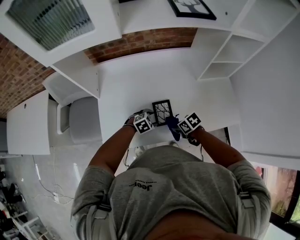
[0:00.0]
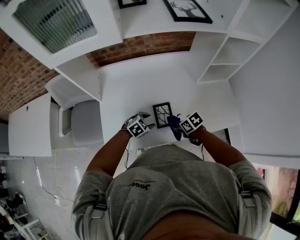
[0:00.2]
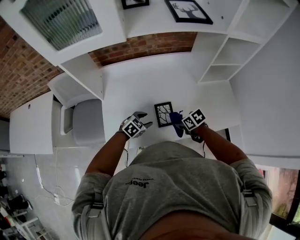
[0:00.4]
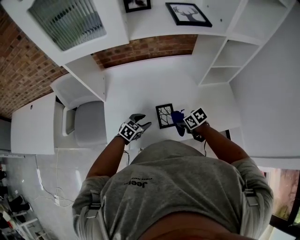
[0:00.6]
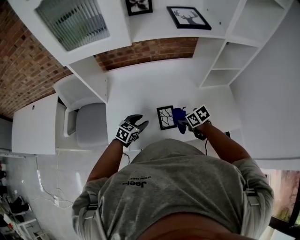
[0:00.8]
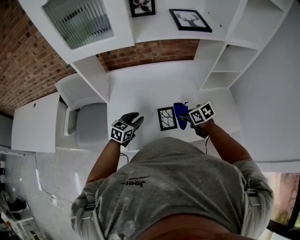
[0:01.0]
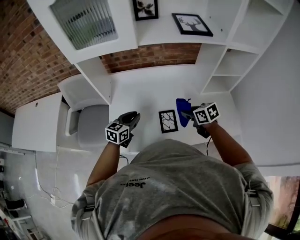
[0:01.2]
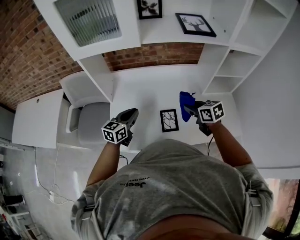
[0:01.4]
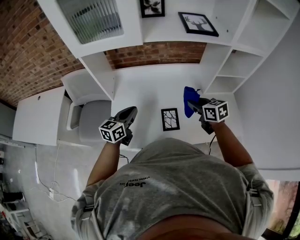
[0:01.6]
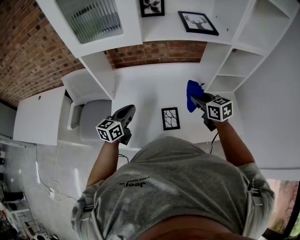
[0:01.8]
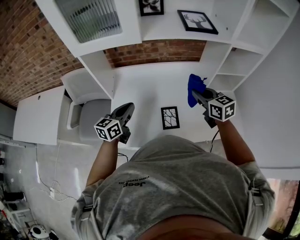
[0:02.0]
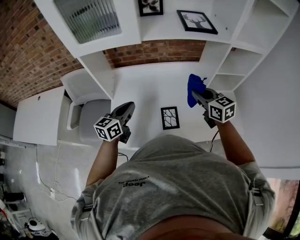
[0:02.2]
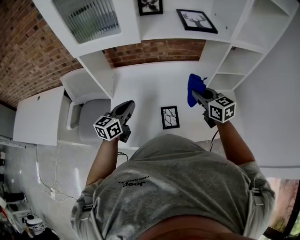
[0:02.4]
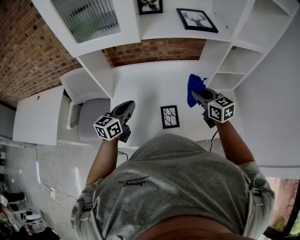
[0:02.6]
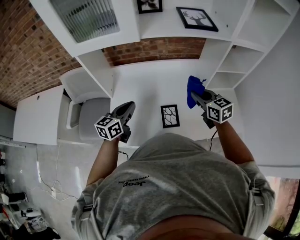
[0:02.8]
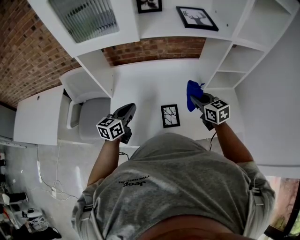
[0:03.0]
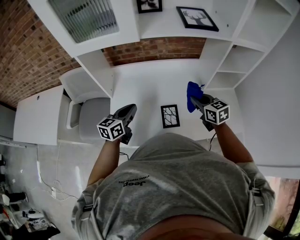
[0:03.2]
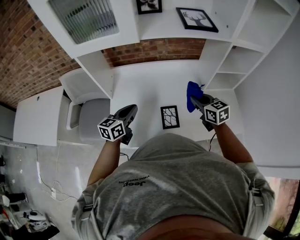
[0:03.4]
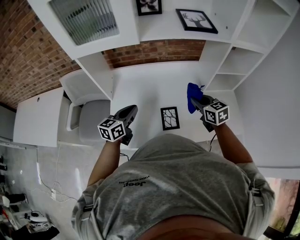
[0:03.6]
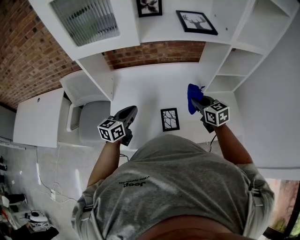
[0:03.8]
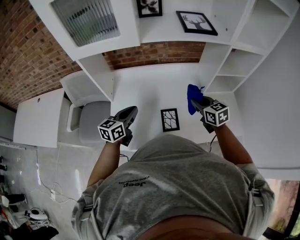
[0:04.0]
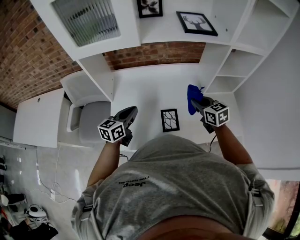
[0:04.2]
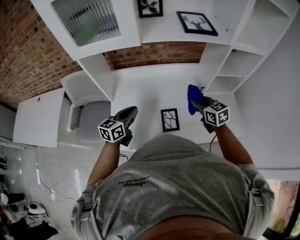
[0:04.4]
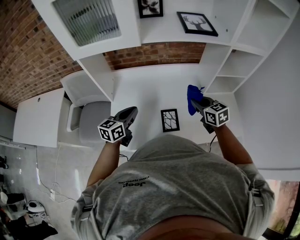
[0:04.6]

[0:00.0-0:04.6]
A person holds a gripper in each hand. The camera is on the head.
0:00.0 to 0:01.6: The grippers both shift upward by some 25 cm. The right gripper swivels roughly 40 degrees, while the left gripper tilts its fingers about 50 degrees upward, and closes up.
0:03.0 to 0:04.6: Neither gripper changes place.

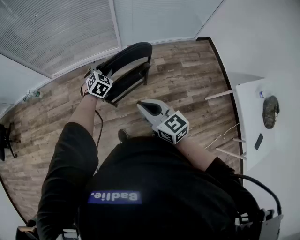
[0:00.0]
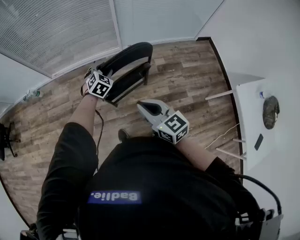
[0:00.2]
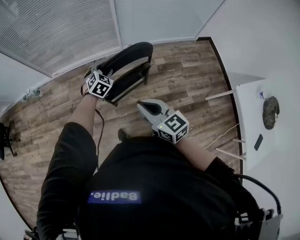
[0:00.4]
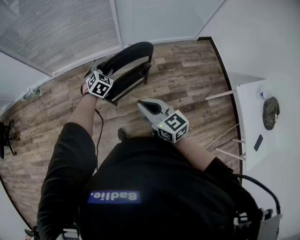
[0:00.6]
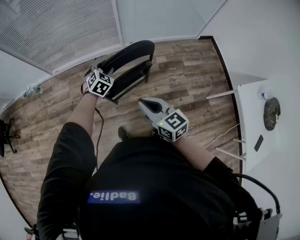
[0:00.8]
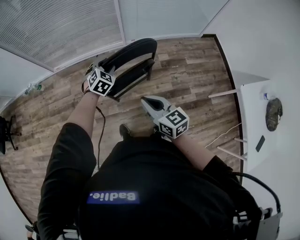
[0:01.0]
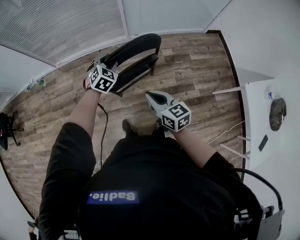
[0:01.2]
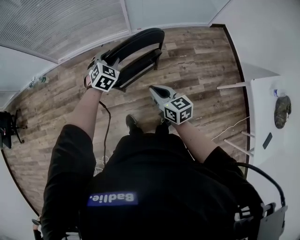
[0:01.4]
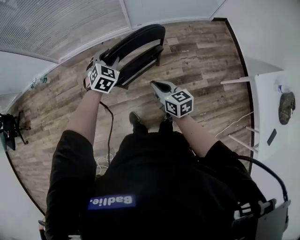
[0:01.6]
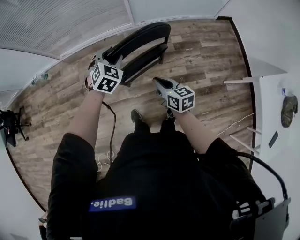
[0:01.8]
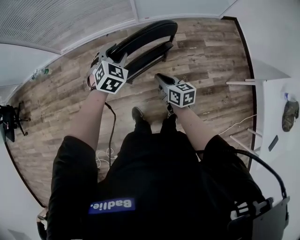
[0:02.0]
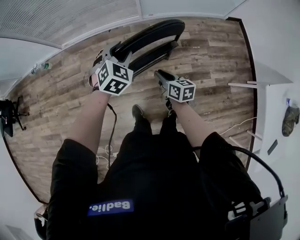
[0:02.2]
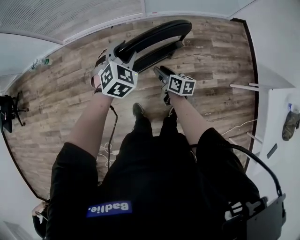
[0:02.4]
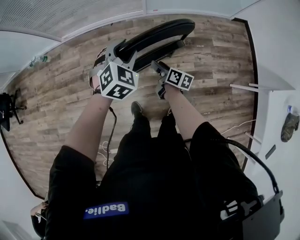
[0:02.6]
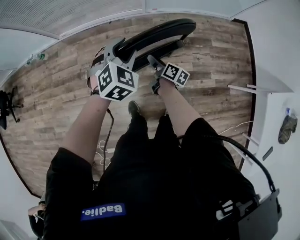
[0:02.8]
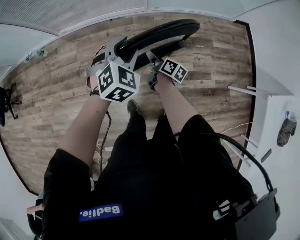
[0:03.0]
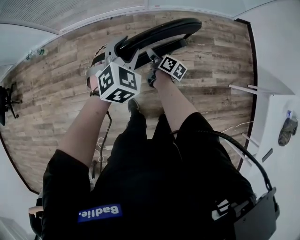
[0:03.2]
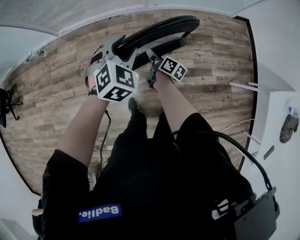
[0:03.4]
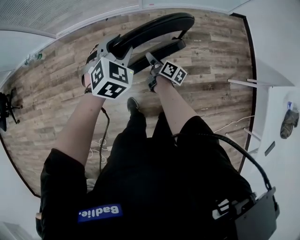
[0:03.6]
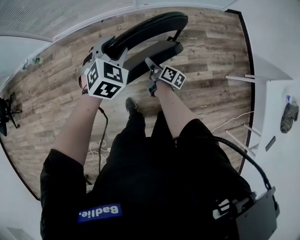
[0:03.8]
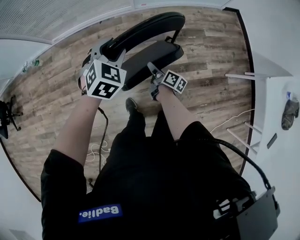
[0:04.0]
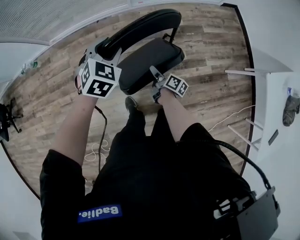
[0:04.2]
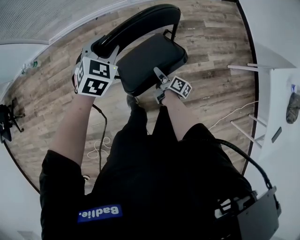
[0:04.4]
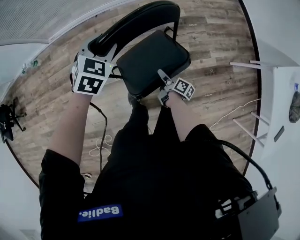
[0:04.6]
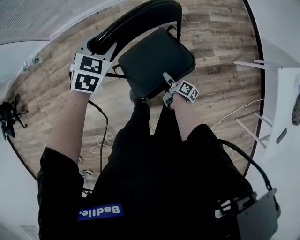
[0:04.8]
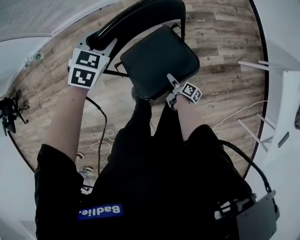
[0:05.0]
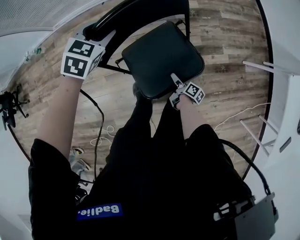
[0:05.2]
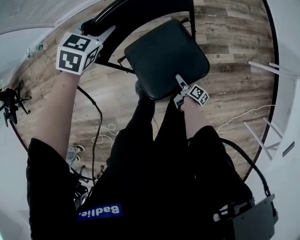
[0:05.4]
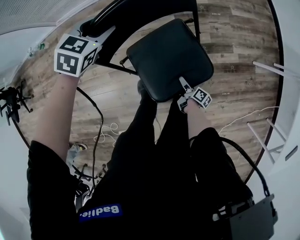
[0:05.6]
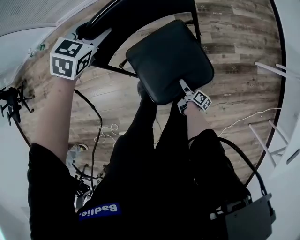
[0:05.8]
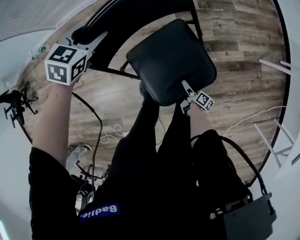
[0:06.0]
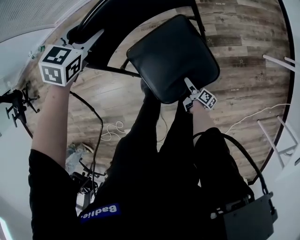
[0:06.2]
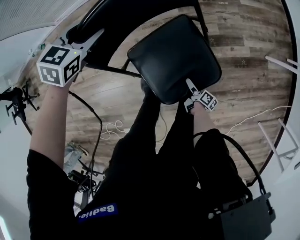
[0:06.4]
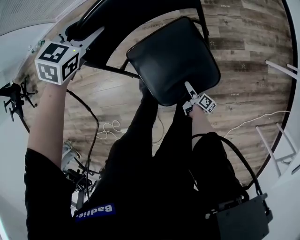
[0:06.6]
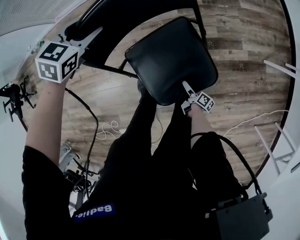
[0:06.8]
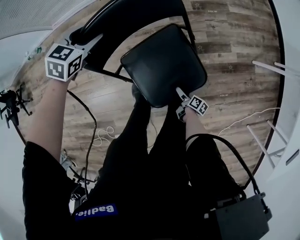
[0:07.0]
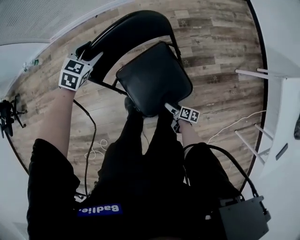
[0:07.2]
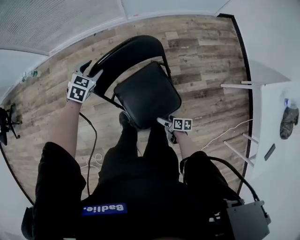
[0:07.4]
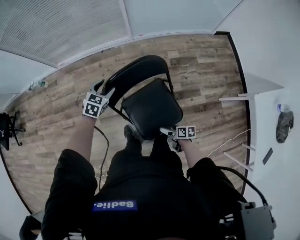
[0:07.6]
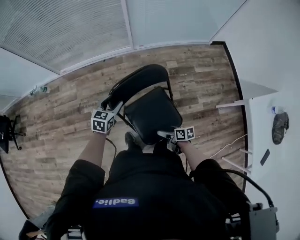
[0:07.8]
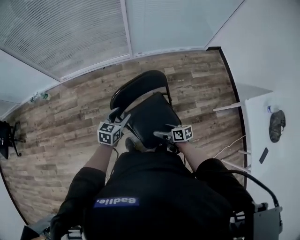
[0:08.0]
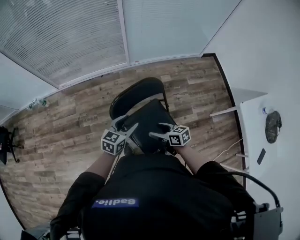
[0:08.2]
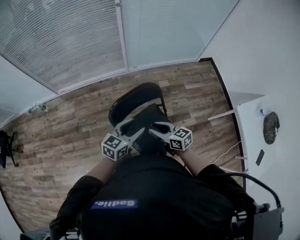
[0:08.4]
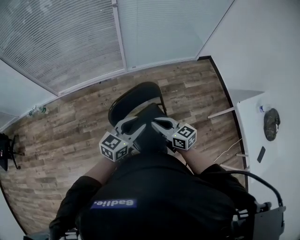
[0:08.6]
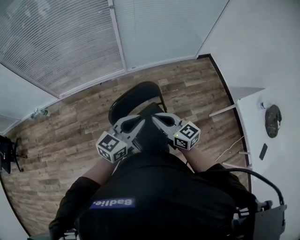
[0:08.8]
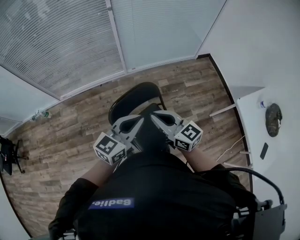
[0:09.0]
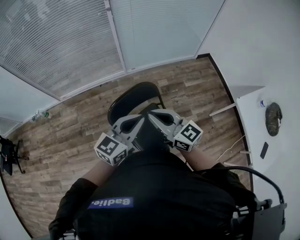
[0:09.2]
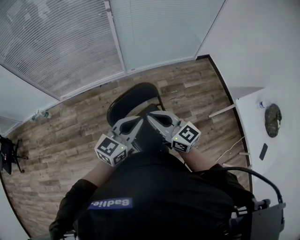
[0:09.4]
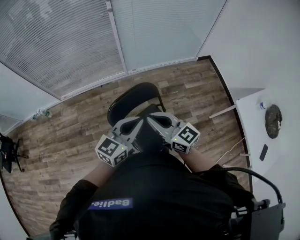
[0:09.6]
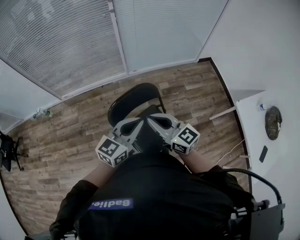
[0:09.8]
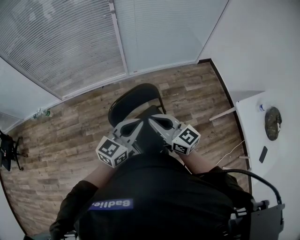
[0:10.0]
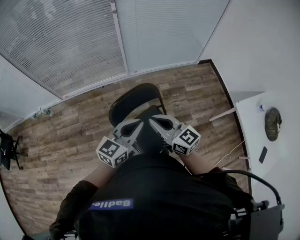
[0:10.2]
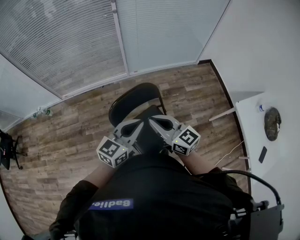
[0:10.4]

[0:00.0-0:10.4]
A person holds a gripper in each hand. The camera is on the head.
0:00.0 to 0:01.4: The right gripper moves downward, approximately 10 cm.
0:01.4 to 0:03.0: The right gripper travels downward and forward by roughly 30 cm, twists some 50 degrees clockwise, seen from behind, and opens its fingers.
0:03.0 to 0:04.4: The right gripper is displaced backward, downward and to the right by roughly 20 cm.
0:04.4 to 0:06.0: The left gripper goes roughly 15 cm downward. Meanwhile the right gripper heads downward and backward, covering about 30 cm, and opens.
0:06.0 to 0:07.4: The right gripper shifts some 15 cm upward, and swivels approximately 40 degrees.
0:07.4 to 0:09.0: The right gripper travels upward by roughly 60 cm, rotates around the line of its fingers by some 60 degrees, counterclockwise from behind, and closes its fingers. The left gripper shifts some 40 cm upward and backward, tilts its fingers approximately 40 degrees upward, and closes.
0:09.0 to 0:10.4: The grippers stay close to where they were, moving slightly.

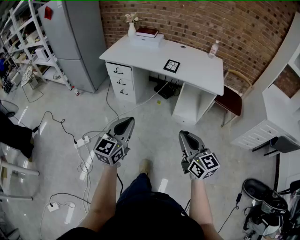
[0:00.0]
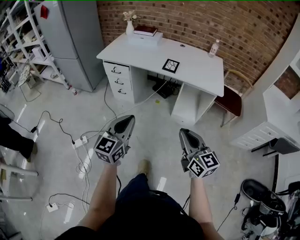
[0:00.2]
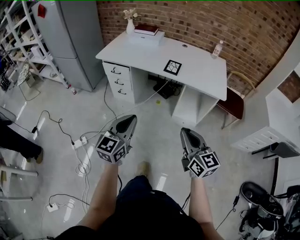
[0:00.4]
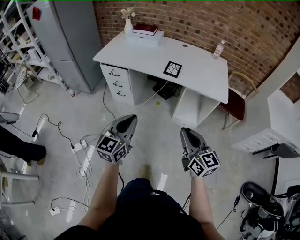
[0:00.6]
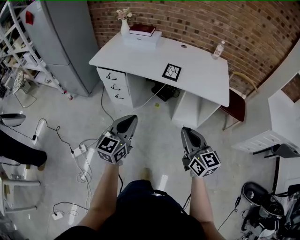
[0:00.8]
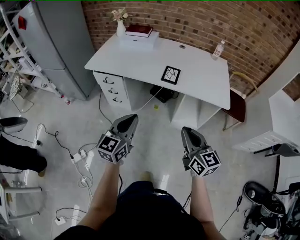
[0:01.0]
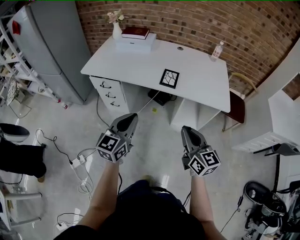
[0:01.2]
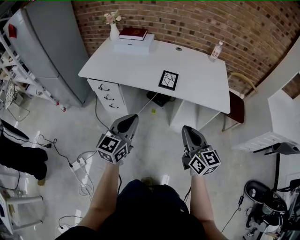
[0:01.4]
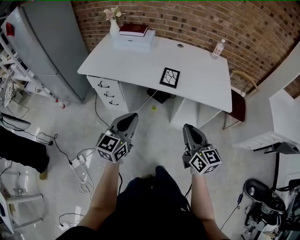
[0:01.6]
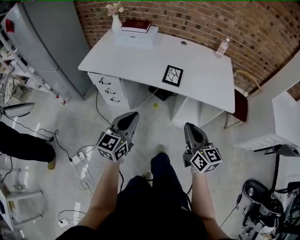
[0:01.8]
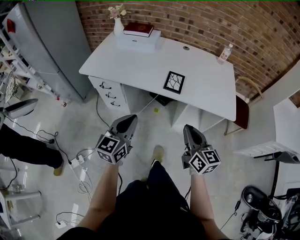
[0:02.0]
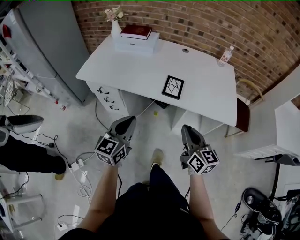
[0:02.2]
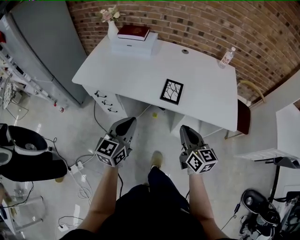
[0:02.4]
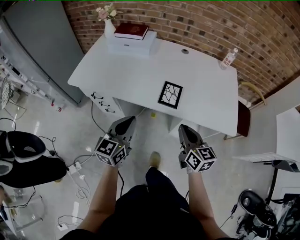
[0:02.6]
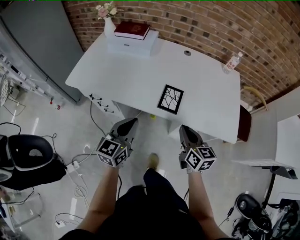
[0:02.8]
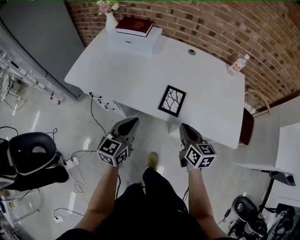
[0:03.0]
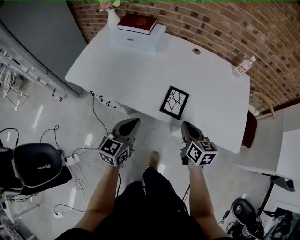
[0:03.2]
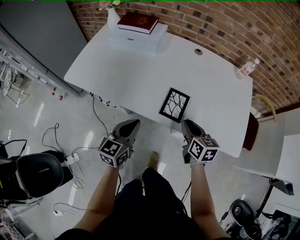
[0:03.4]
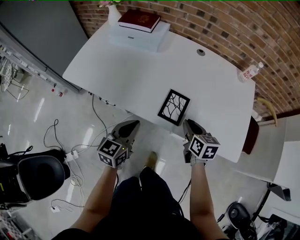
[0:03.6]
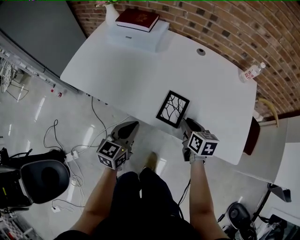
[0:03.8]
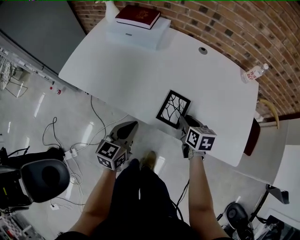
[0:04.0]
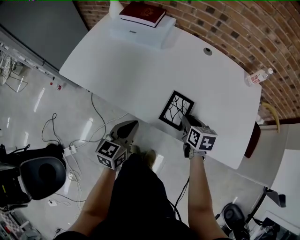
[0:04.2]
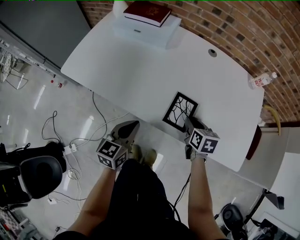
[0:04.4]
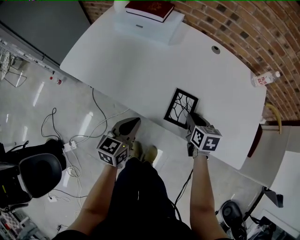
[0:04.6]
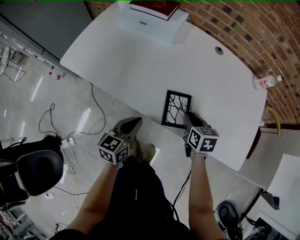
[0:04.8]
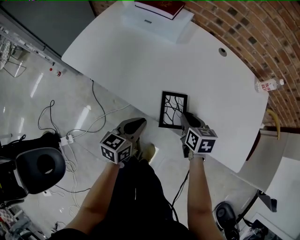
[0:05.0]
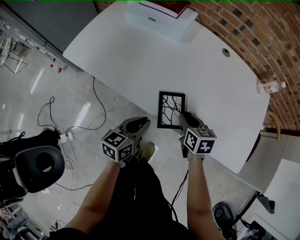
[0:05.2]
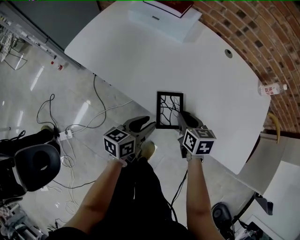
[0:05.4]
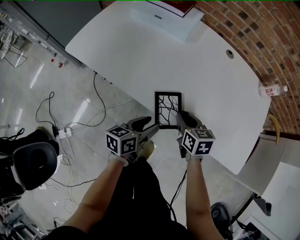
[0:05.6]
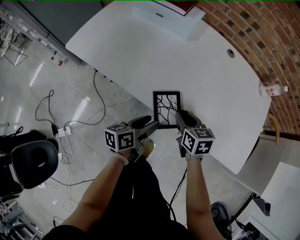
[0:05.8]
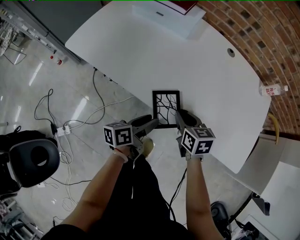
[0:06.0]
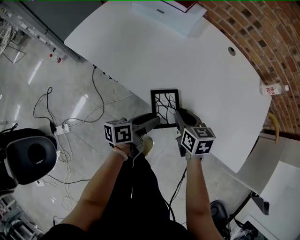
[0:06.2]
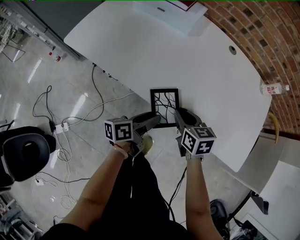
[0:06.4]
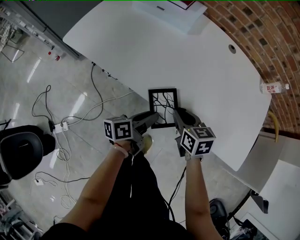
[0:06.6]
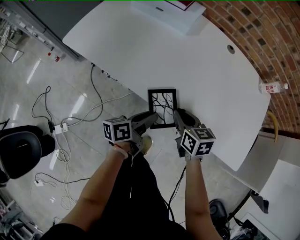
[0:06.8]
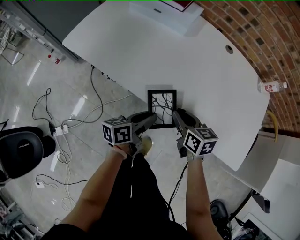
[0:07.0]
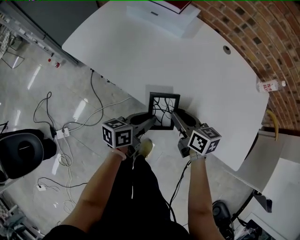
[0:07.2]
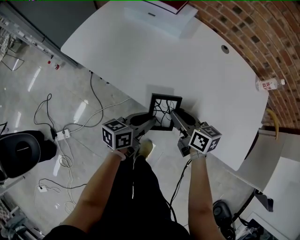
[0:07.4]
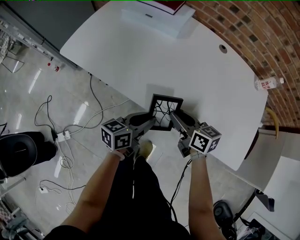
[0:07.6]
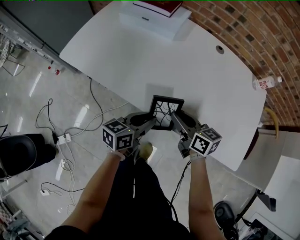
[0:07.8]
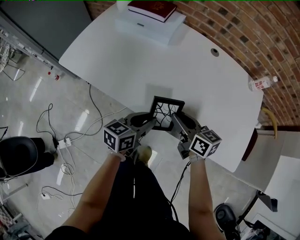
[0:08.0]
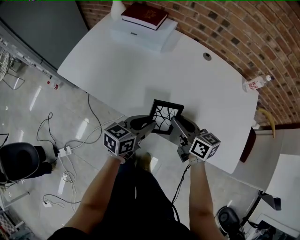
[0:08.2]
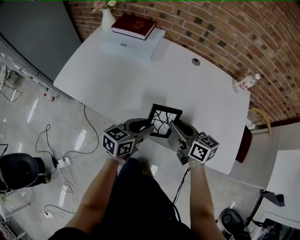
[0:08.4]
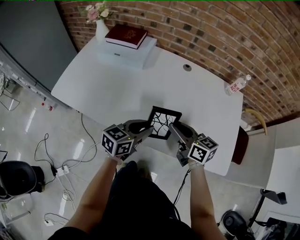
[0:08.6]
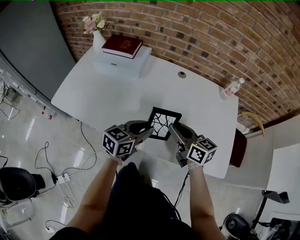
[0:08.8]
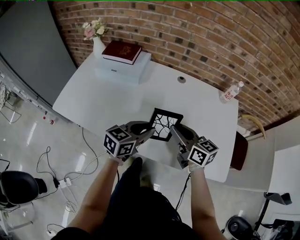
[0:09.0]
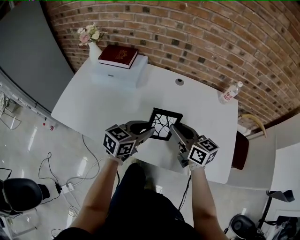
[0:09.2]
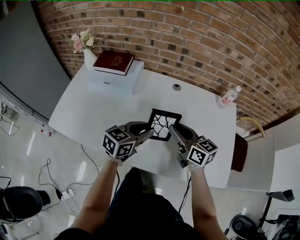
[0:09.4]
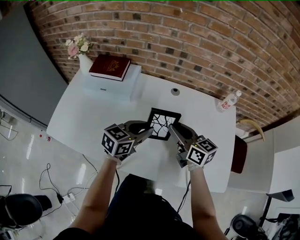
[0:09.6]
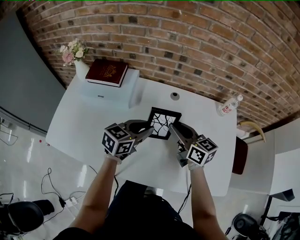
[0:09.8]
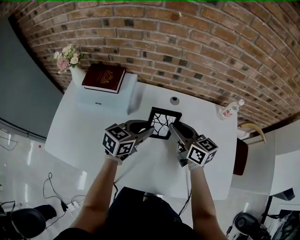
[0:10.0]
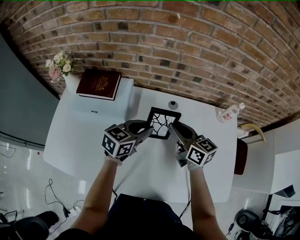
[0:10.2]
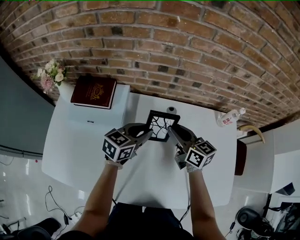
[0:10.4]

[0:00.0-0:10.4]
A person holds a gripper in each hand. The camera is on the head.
0:00.0 to 0:01.4: The two grippers go about 30 cm forward.
0:01.4 to 0:03.0: The grippers both shift forward by roughly 25 cm. The right gripper rotates approximately 20 degrees.
0:03.0 to 0:04.4: The right gripper travels forward and downward by some 20 cm, swivels about 20 degrees, and opens; the left gripper travels downward and forward by some 10 cm.
0:04.4 to 0:06.0: The right gripper goes some 10 cm to the left. Meanwhile the left gripper is displaced downward by roughly 10 cm, twists roughly 50 degrees counterclockwise, seen from behind, and opens up.
0:06.0 to 0:07.4: The right gripper changes its angle by about 20 degrees, while the left gripper swivels approximately 20 degrees, and closes up.
0:07.4 to 0:09.0: Both grippers travel together upward, to the right and forward, roughly 20 cm. The left gripper swivels some 30 degrees, while the right gripper turns by about 20 degrees.
0:09.0 to 0:10.4: The two grippers go some 25 cm forward.
